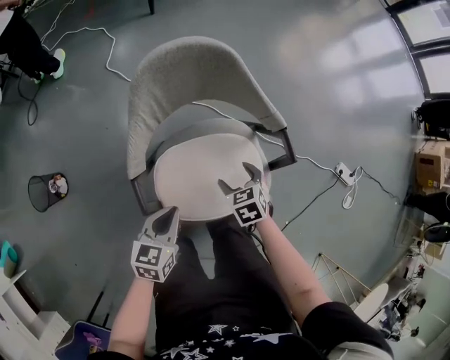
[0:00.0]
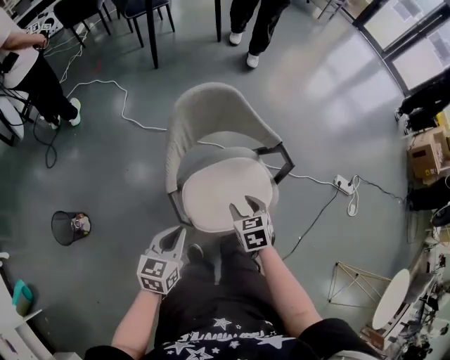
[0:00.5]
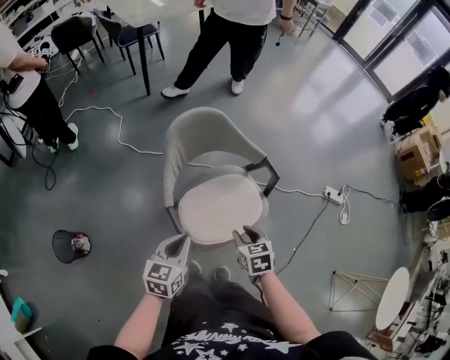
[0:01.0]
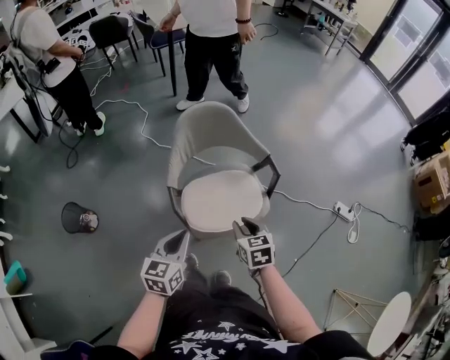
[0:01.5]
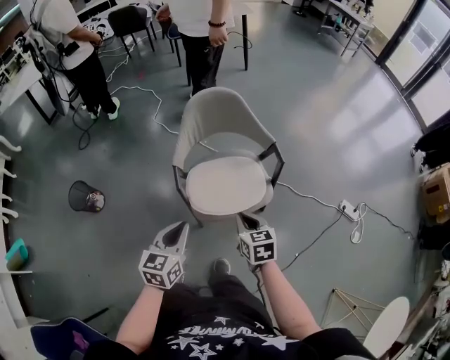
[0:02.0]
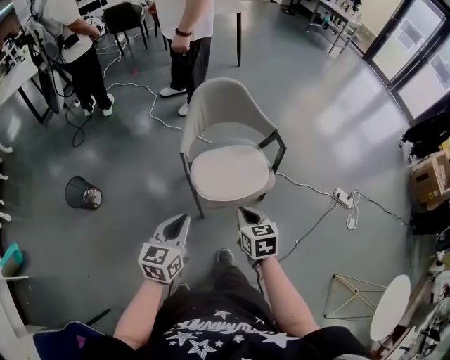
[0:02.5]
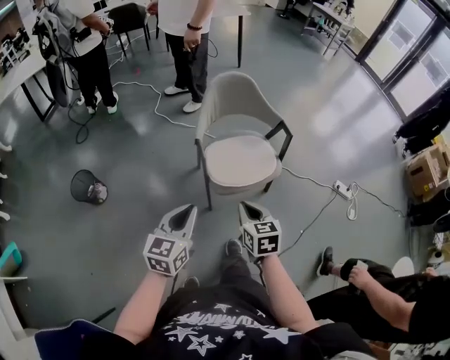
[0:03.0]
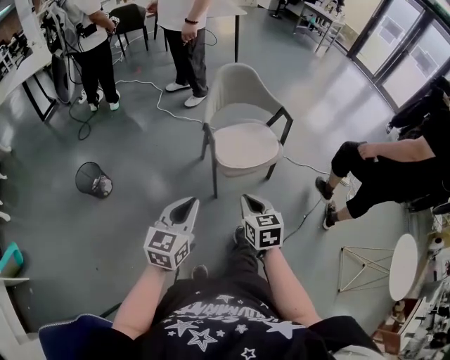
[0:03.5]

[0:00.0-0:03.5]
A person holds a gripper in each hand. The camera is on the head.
0:00.0 to 0:02.0: The left gripper travels upward and backward by some 25 cm; the right gripper travels backward and upward by some 30 cm, changes its angle by roughly 20 degrees, and closes.
0:02.0 to 0:03.5: The two grippers go approximately 25 cm backward and to the left.

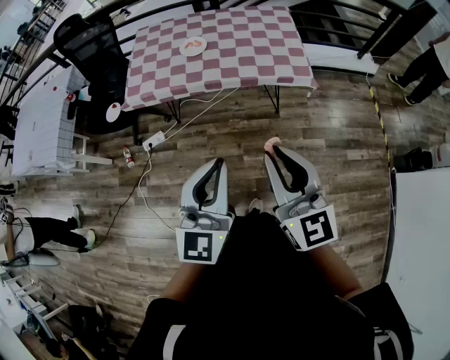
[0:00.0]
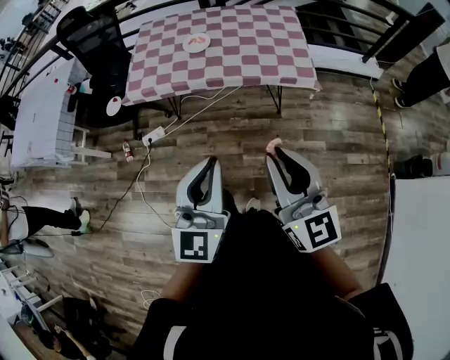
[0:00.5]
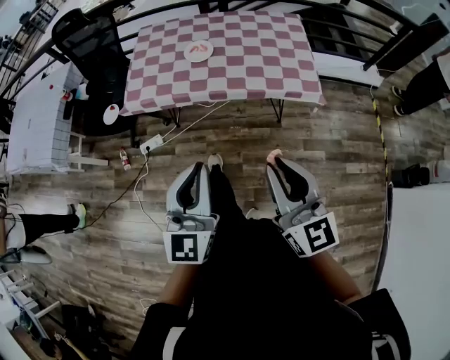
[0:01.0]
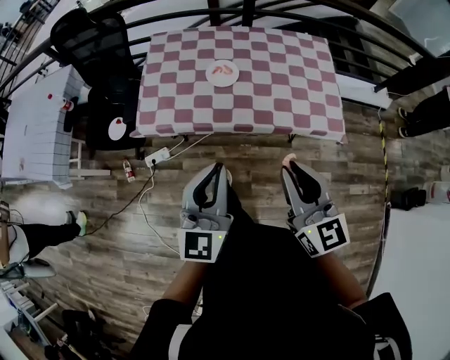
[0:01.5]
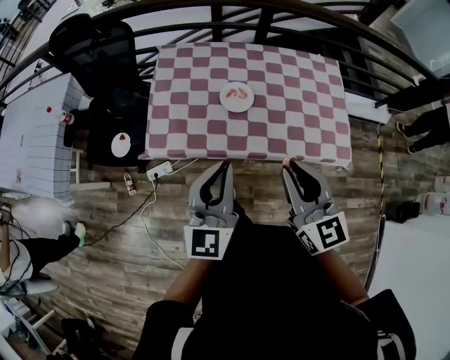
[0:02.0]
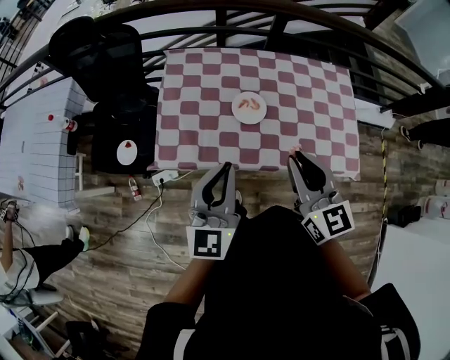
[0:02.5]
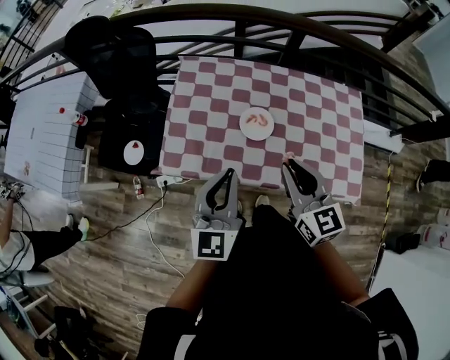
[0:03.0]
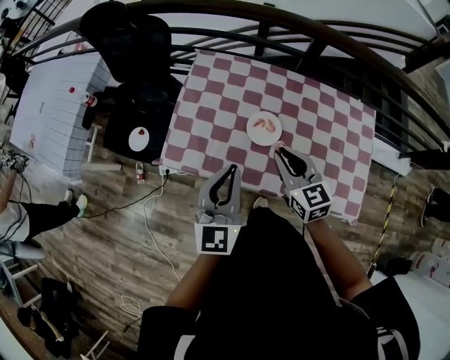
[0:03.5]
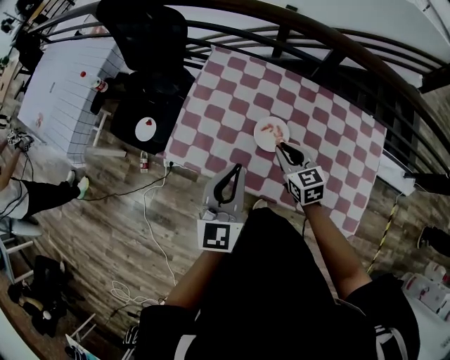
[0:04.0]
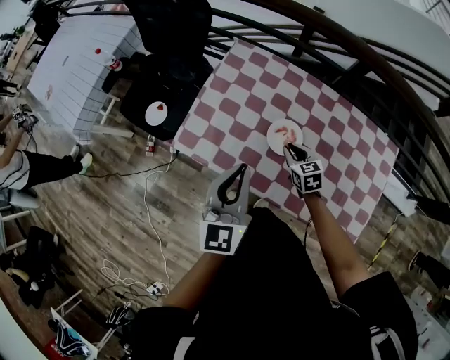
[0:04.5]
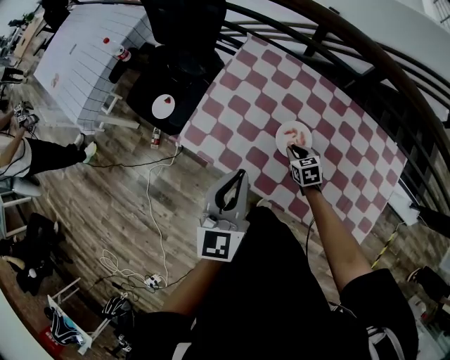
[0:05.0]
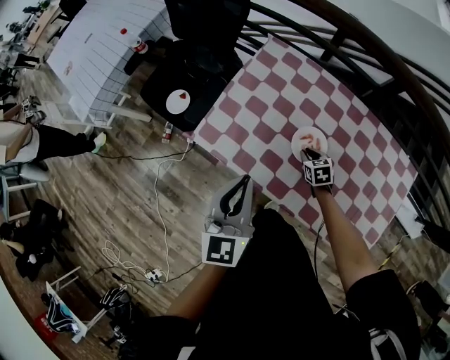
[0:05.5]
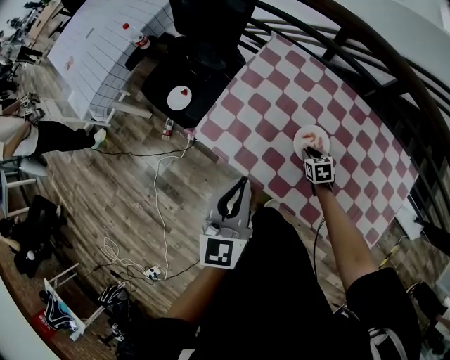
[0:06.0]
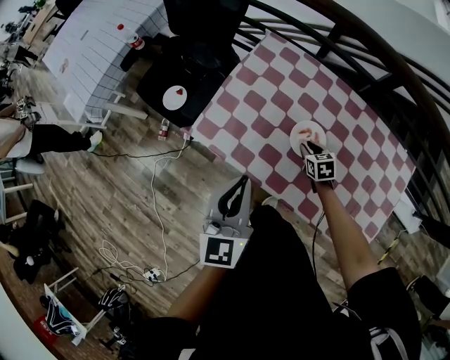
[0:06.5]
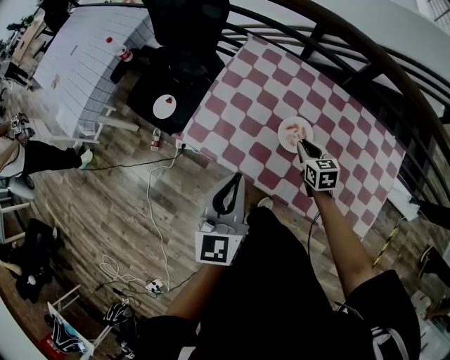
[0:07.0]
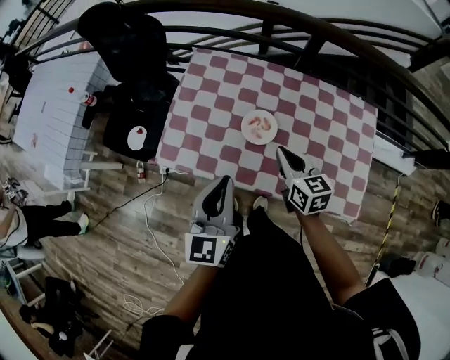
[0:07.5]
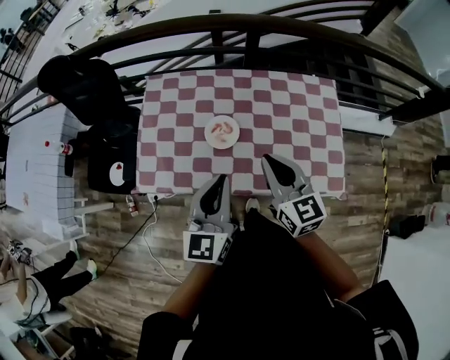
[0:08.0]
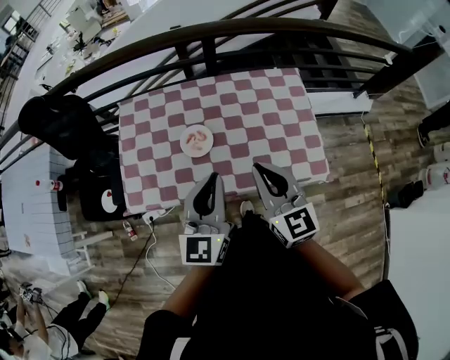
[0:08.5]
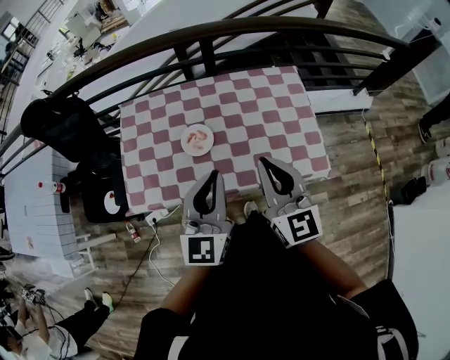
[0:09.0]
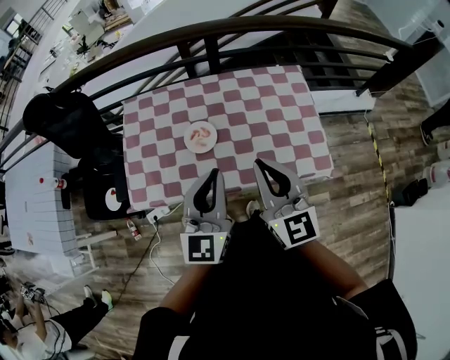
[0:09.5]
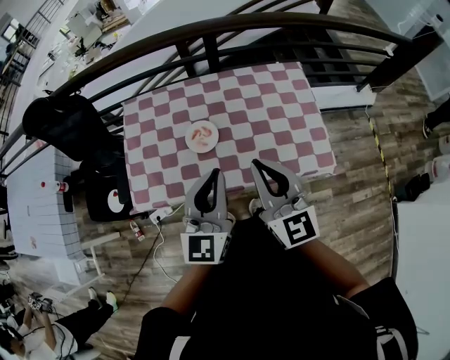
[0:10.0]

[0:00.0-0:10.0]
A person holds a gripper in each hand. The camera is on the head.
0:00.0 to 0:02.0: Both grippers are carried forward and to the left, roughly 40 cm.
0:02.0 to 0:04.0: The right gripper moves forward and downward, roughly 35 cm, and swivels about 30 degrees; the left gripper is displaced forward by roughly 15 cm, and changes its angle by about 20 degrees.
0:04.0 to 0:06.0: The right gripper travels downward by some 20 cm, and swivels approximately 30 degrees; the left gripper travels to the left by approximately 10 cm.
0:06.0 to 0:08.0: The left gripper shifts by roughly 15 cm, and rotates some 30 degrees. Meanwhile the right gripper goes roughly 35 cm upward, and points its fingers some 40 degrees further upward.
0:08.0 to 0:10.0: The left gripper moves about 5 cm; the right gripper shifts approximately 10 cm upward and backward.

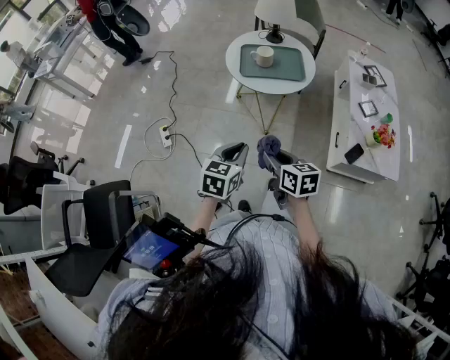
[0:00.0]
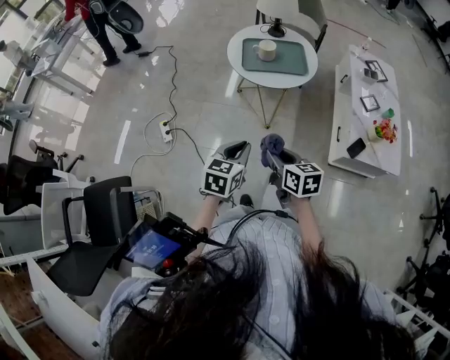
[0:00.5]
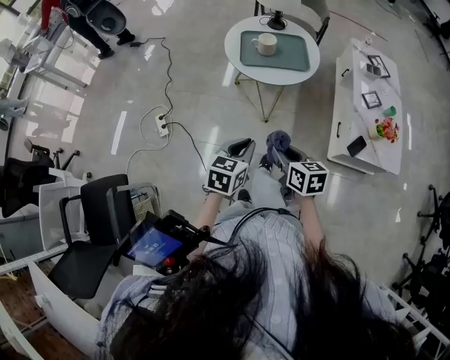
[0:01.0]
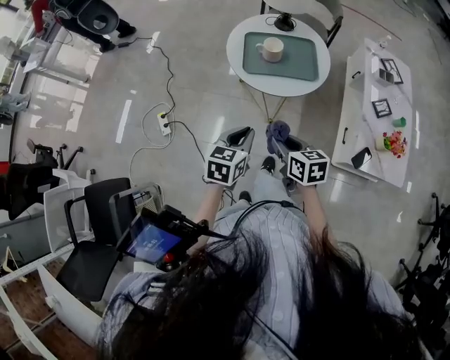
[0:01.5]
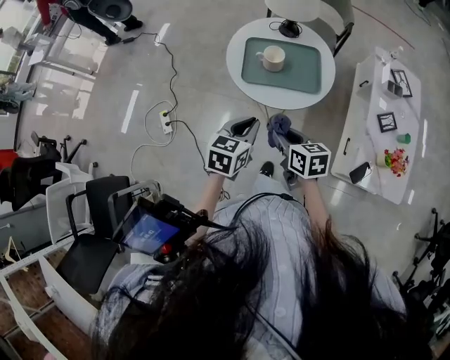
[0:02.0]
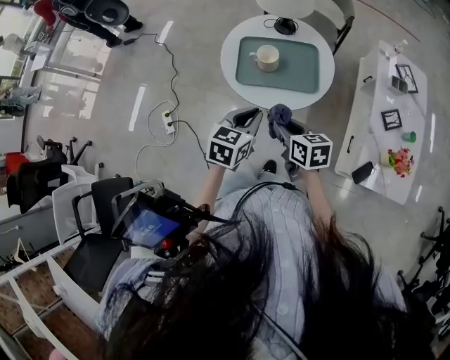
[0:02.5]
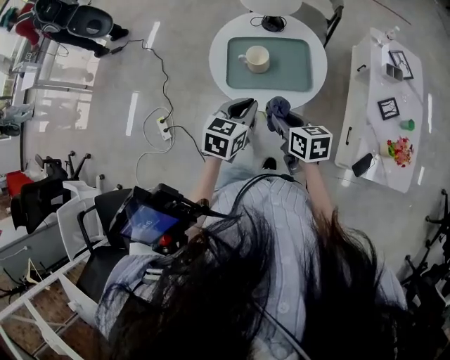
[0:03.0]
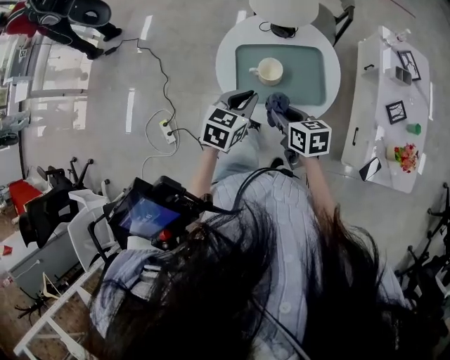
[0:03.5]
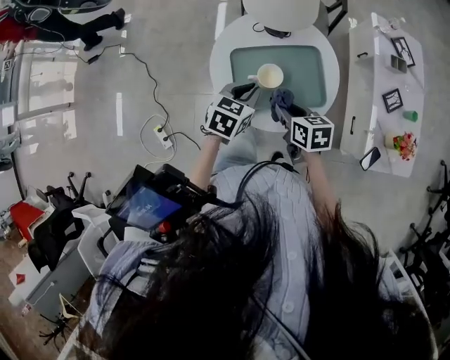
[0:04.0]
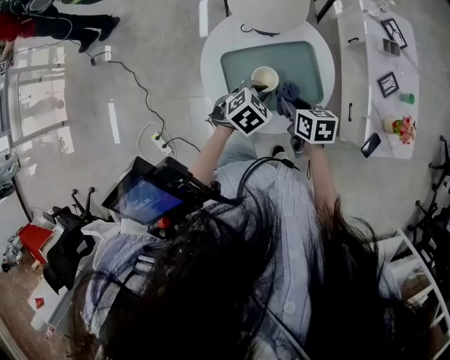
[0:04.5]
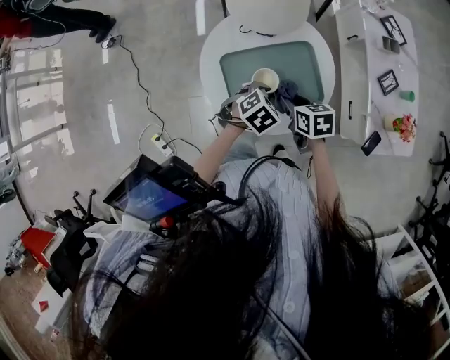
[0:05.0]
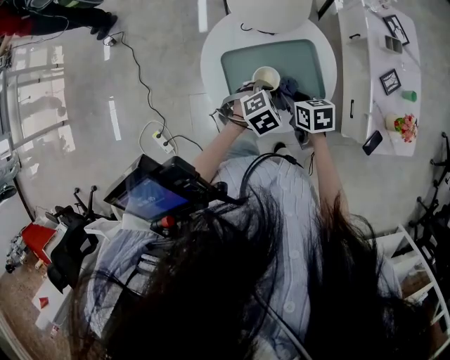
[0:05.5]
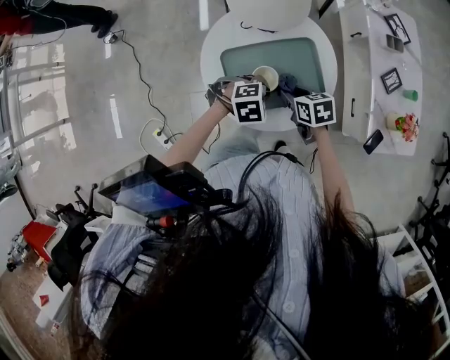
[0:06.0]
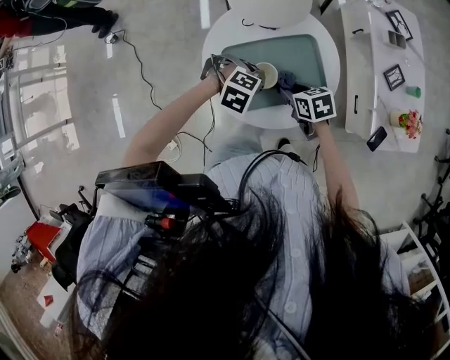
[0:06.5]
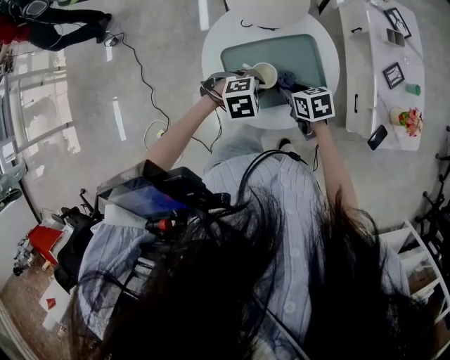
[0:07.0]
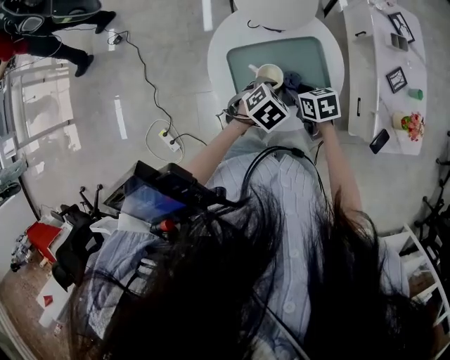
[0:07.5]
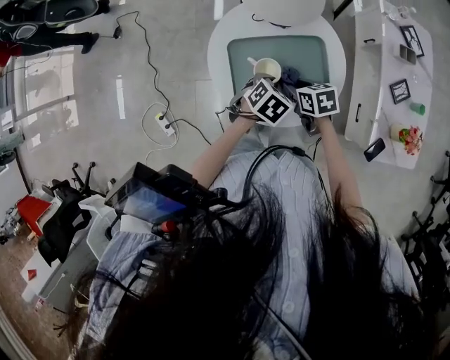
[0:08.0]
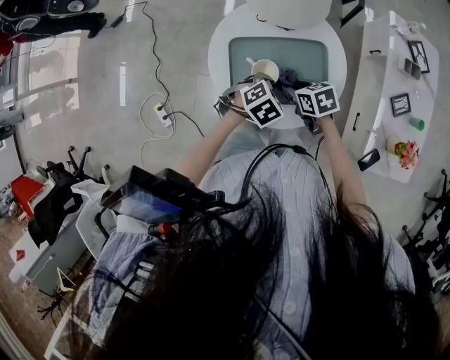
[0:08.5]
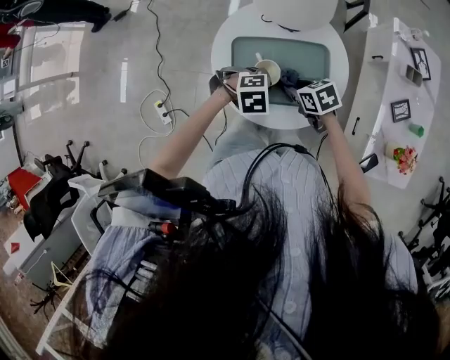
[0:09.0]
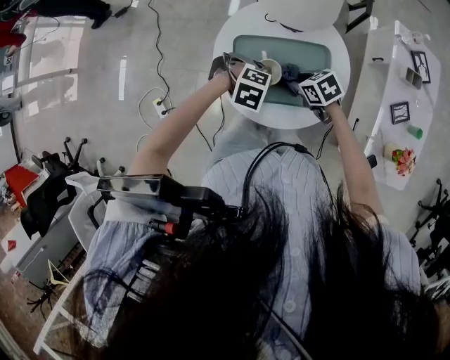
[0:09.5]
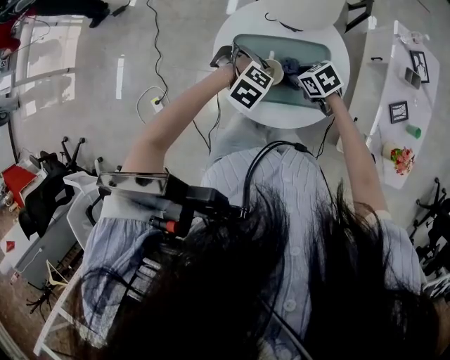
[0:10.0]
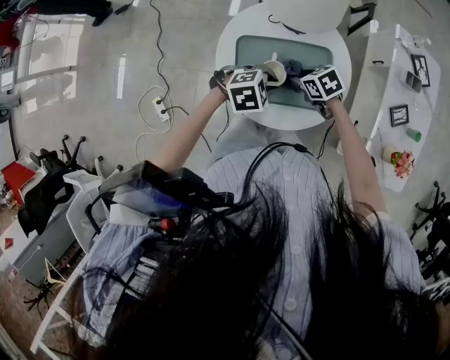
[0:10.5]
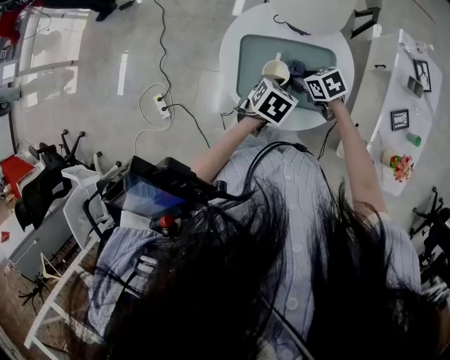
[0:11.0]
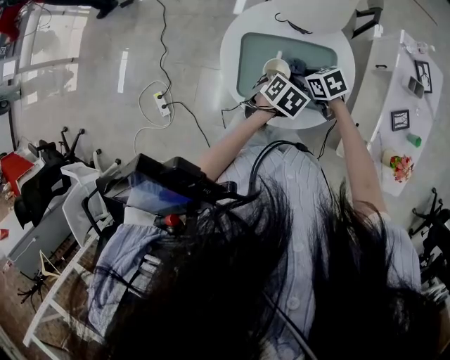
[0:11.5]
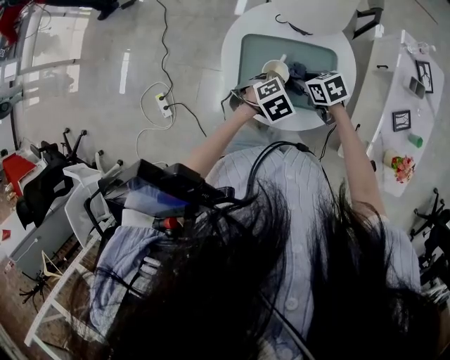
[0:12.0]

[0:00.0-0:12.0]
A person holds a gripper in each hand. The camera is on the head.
0:00.0 to 0:02.0: The two grippers go some 25 cm forward.
0:02.0 to 0:04.0: Both grippers move forward, about 25 cm. The left gripper turns by some 20 degrees.
0:04.0 to 0:06.0: Both grippers move downward, approximately 5 cm. The left gripper changes its angle by about 60 degrees.
0:06.0 to 0:08.0: The left gripper twists some 50 degrees counterclockwise, seen from behind.
0:08.0 to 0:10.0: The right gripper rotates roughly 30 degrees; the left gripper changes place by roughly 5 cm, and twists approximately 70 degrees clockwise, seen from behind.
0:10.0 to 0:12.0: The left gripper ends up approximately 5 cm from where it was, and twists approximately 60 degrees counterclockwise, seen from behind.

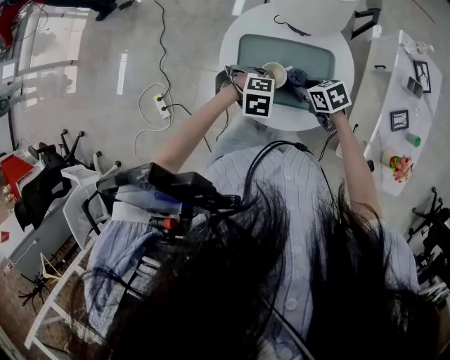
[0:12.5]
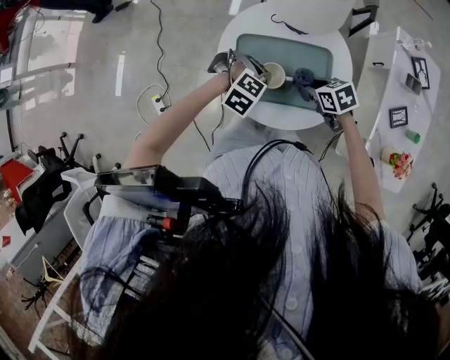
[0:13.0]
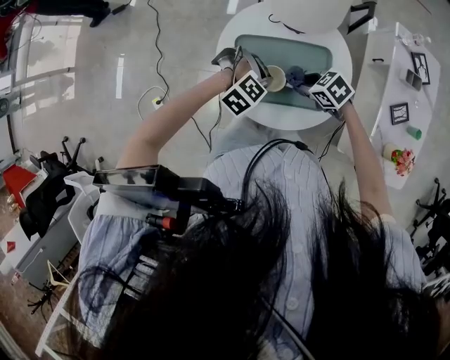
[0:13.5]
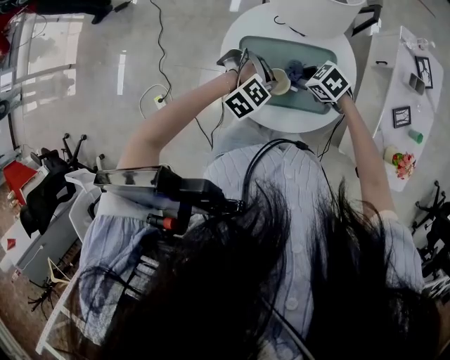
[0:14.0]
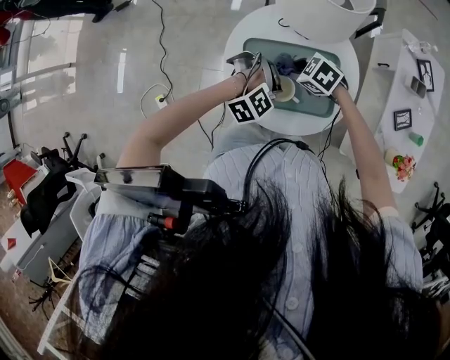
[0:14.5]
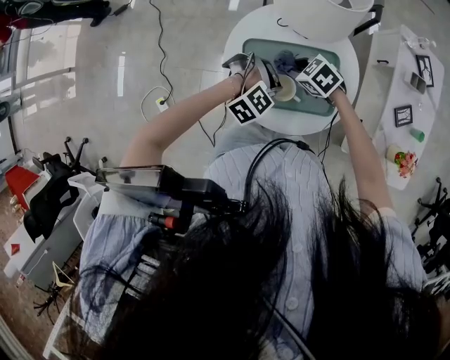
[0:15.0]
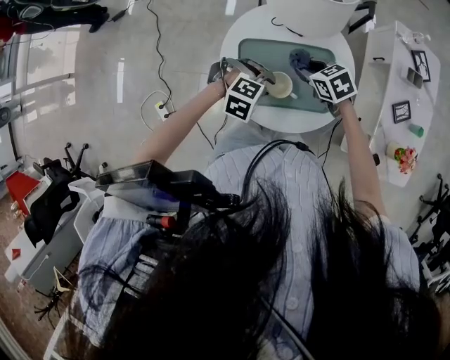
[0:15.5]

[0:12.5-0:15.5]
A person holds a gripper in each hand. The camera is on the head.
0:12.5 to 0:14.0: The left gripper rotates around the line of its fingers by about 50 degrees, clockwise from behind; the right gripper changes its angle by some 20 degrees.
0:14.0 to 0:15.5: The right gripper changes place by approximately 5 cm, and rotates some 20 degrees; the left gripper rotates approximately 30 degrees, and opens up.
